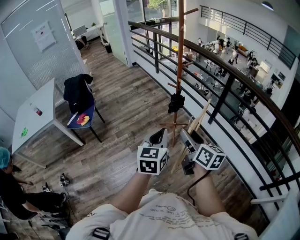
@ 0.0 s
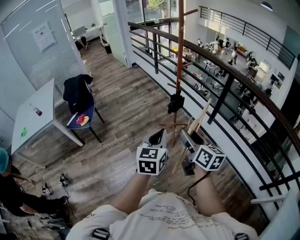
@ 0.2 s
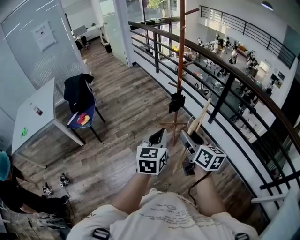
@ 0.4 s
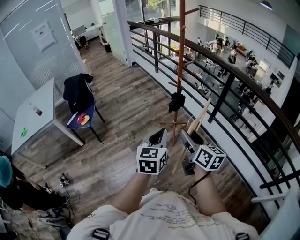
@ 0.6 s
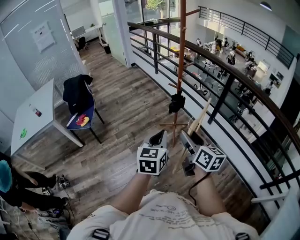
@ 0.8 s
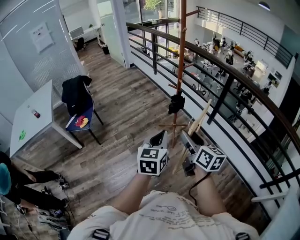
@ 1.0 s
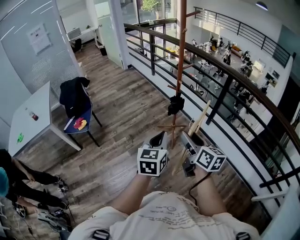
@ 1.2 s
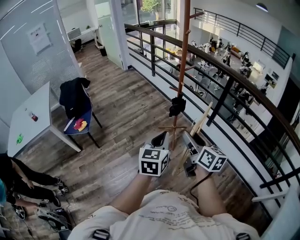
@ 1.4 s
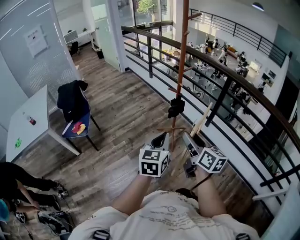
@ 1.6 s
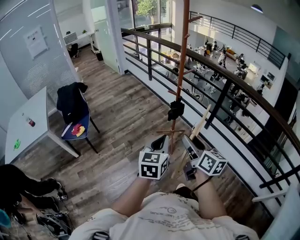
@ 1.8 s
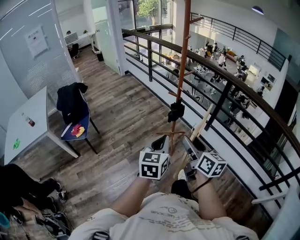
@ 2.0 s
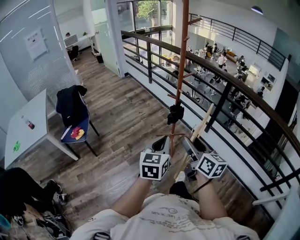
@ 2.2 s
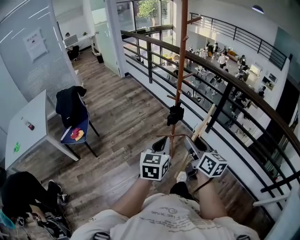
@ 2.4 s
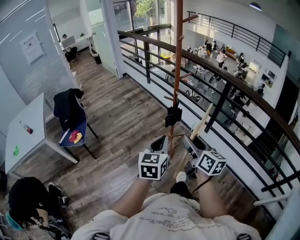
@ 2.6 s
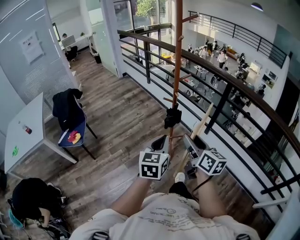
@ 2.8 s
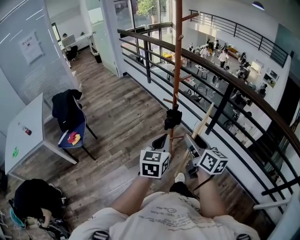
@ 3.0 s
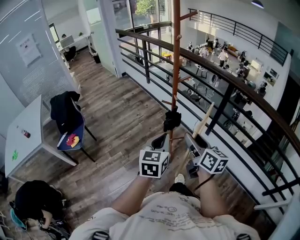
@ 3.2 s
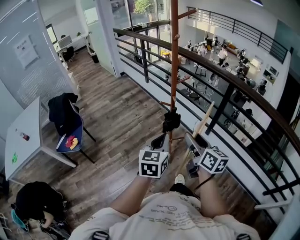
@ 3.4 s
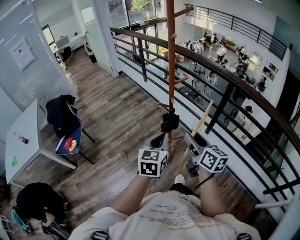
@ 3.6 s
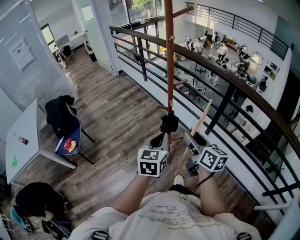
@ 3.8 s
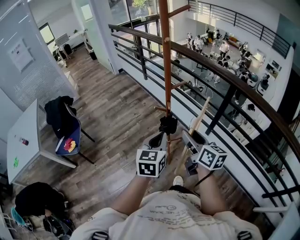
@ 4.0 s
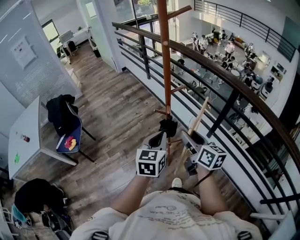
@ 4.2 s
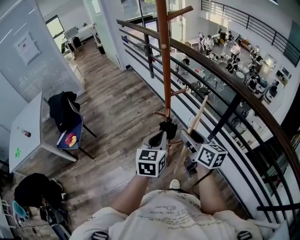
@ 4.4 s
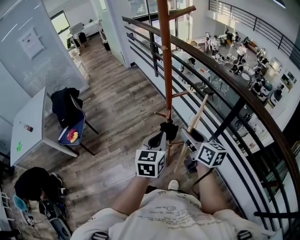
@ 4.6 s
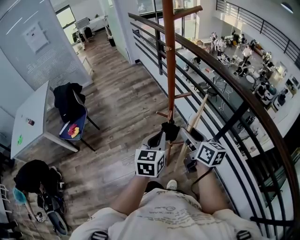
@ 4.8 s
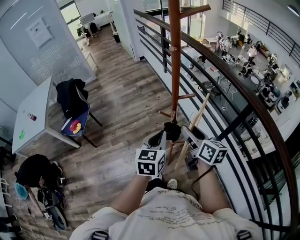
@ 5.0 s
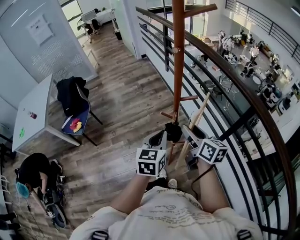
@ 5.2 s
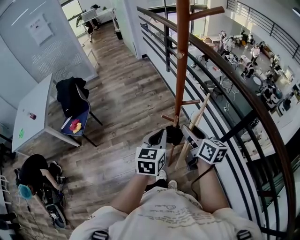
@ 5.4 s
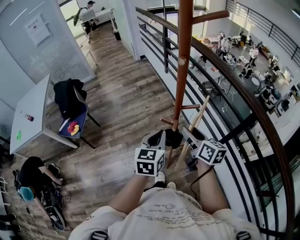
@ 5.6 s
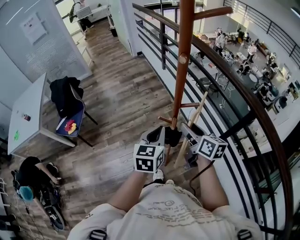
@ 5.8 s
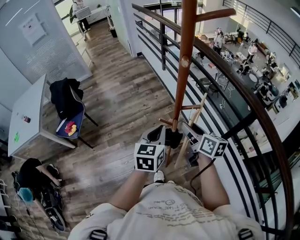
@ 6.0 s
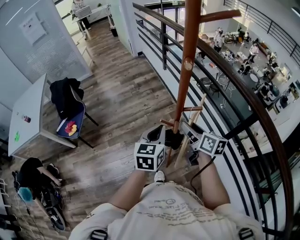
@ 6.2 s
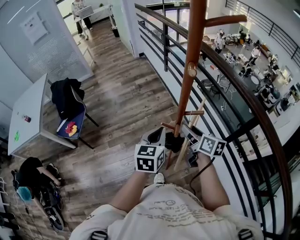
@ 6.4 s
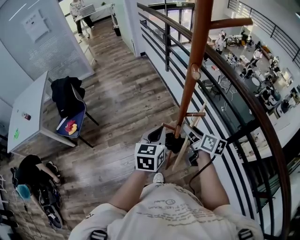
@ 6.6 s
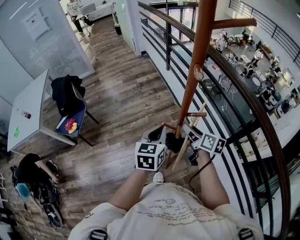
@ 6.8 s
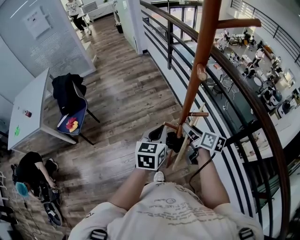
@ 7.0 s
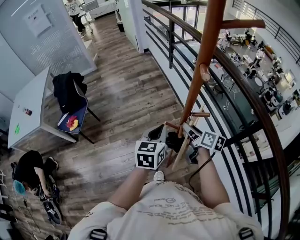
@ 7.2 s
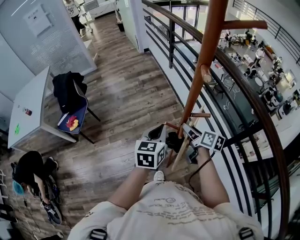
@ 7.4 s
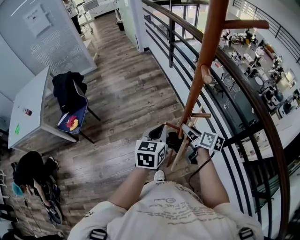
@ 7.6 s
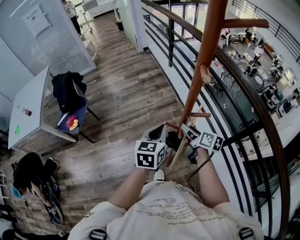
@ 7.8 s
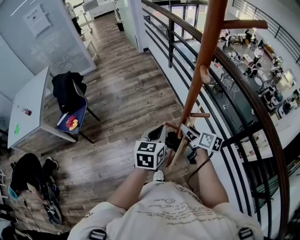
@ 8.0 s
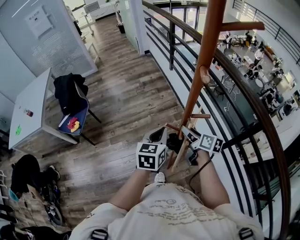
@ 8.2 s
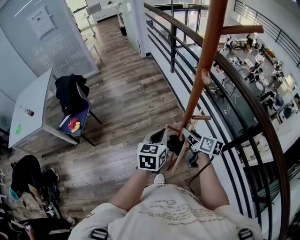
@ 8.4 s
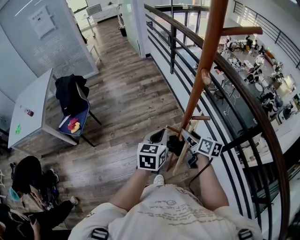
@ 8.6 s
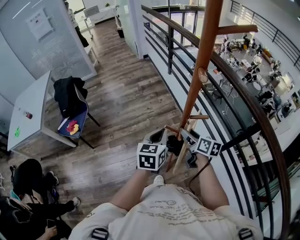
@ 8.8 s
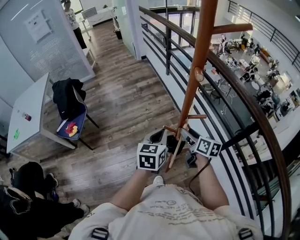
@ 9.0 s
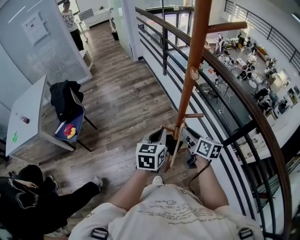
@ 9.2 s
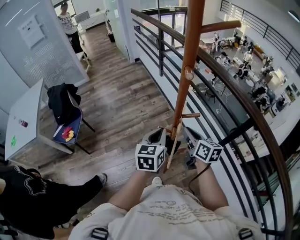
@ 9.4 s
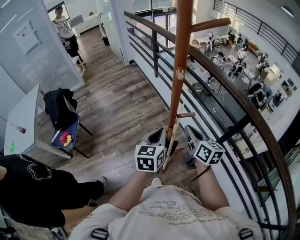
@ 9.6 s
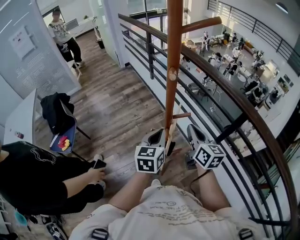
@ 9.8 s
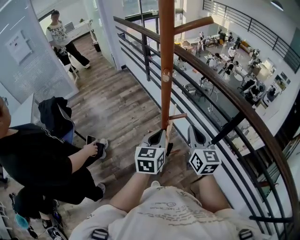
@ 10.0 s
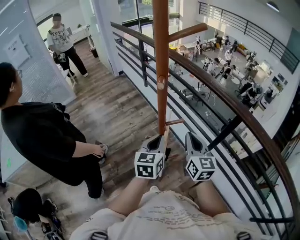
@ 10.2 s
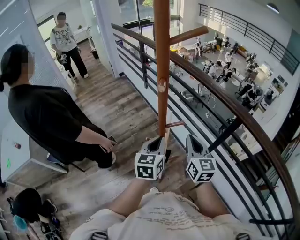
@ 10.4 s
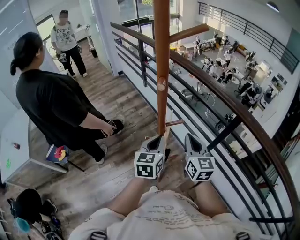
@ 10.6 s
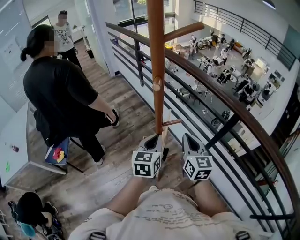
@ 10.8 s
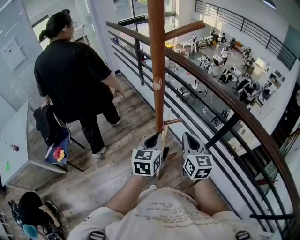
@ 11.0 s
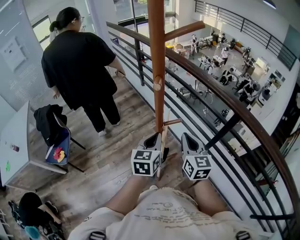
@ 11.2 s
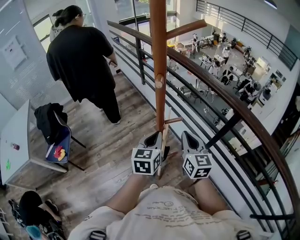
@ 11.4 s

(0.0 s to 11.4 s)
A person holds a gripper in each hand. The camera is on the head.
0.0 s - 1.4 s: The left gripper changes place by approximately 5 cm.
1.4 s - 2.8 s: Both grippers move forward, about 10 cm.
2.8 s - 4.2 s: The grippers both shift forward and to the right by about 20 cm.
4.2 s - 5.6 s: The grippers both shift forward by about 15 cm.
5.6 s - 7.2 s: The left gripper travels forward by roughly 5 cm; the right gripper shifts about 10 cm downward and forward.
7.2 s - 8.6 s: There are only small adjustments of the grippers.
8.6 s - 10.0 s: The left gripper travels to the right by approximately 10 cm, while the right gripper shifts roughly 15 cm upward and to the right, rotates some 40 degrees, and closes.
10.0 s - 11.4 s: The grippers move only a little.

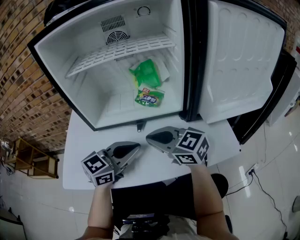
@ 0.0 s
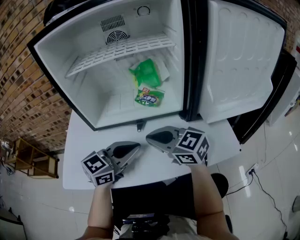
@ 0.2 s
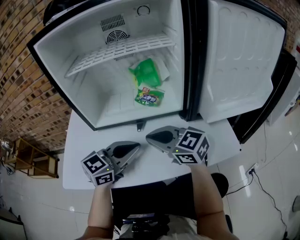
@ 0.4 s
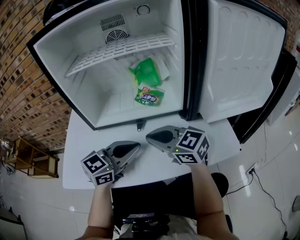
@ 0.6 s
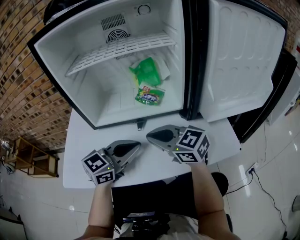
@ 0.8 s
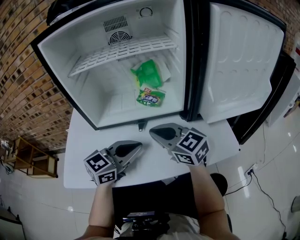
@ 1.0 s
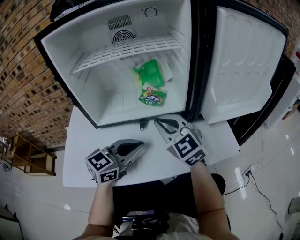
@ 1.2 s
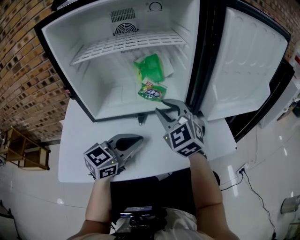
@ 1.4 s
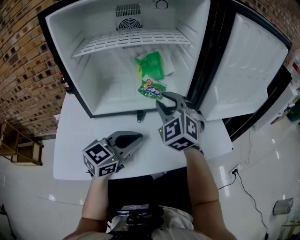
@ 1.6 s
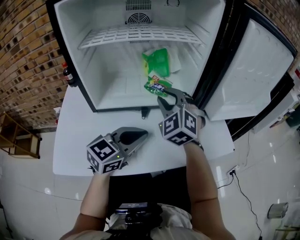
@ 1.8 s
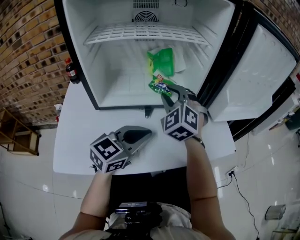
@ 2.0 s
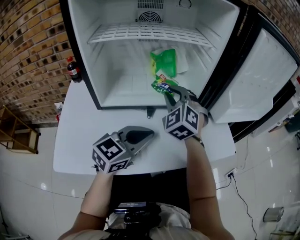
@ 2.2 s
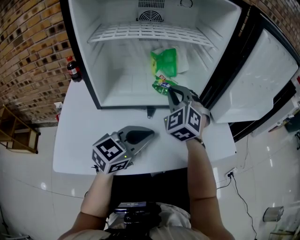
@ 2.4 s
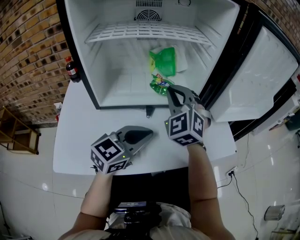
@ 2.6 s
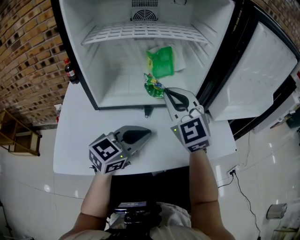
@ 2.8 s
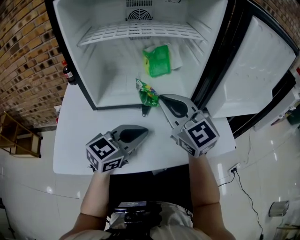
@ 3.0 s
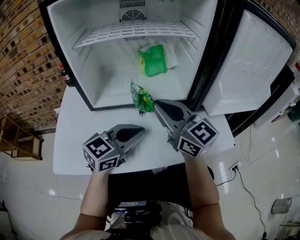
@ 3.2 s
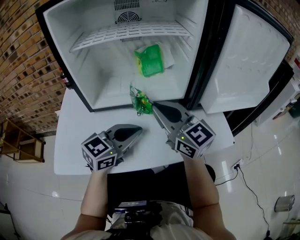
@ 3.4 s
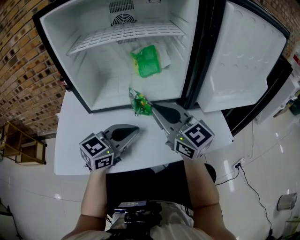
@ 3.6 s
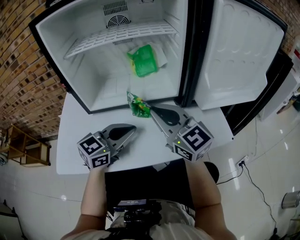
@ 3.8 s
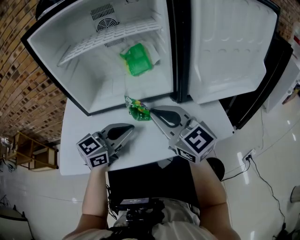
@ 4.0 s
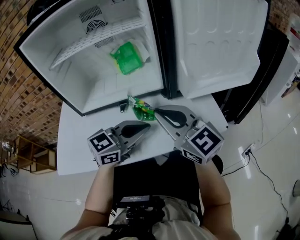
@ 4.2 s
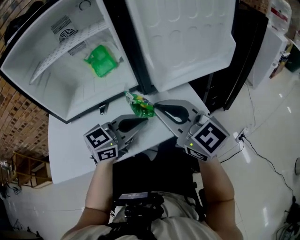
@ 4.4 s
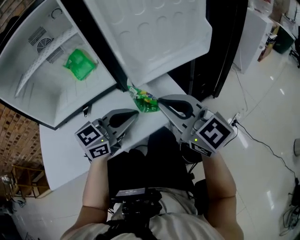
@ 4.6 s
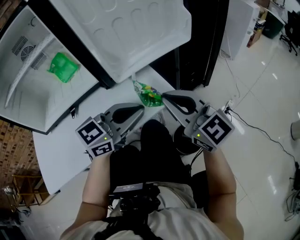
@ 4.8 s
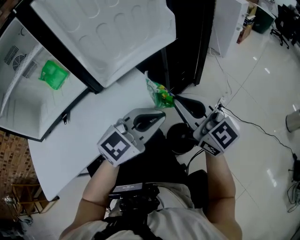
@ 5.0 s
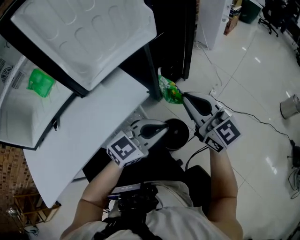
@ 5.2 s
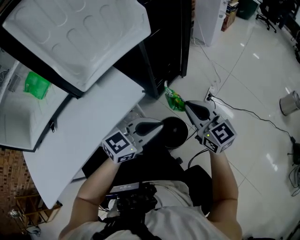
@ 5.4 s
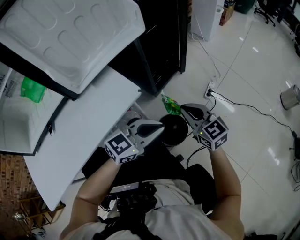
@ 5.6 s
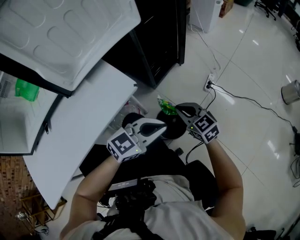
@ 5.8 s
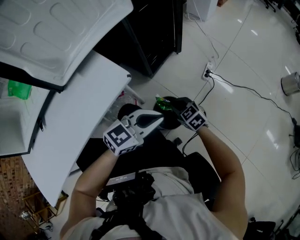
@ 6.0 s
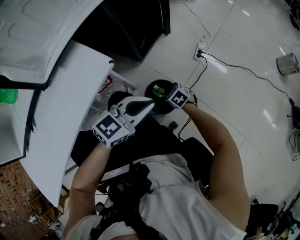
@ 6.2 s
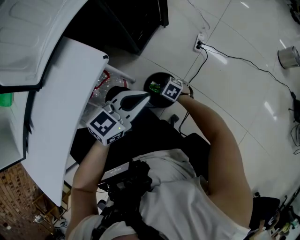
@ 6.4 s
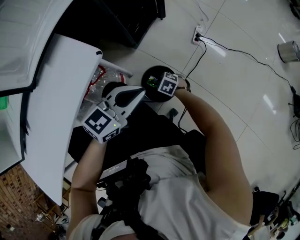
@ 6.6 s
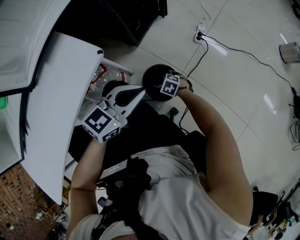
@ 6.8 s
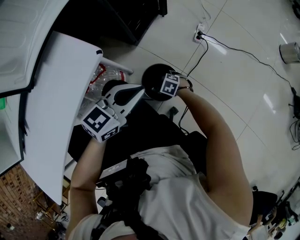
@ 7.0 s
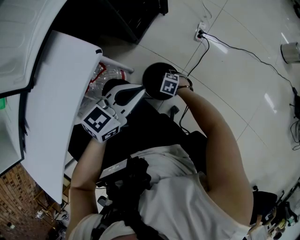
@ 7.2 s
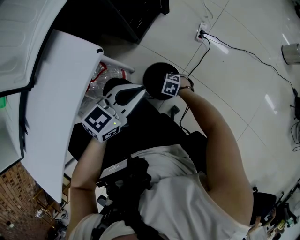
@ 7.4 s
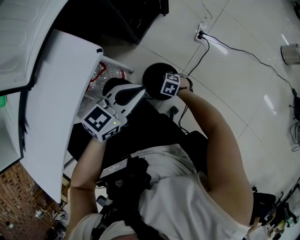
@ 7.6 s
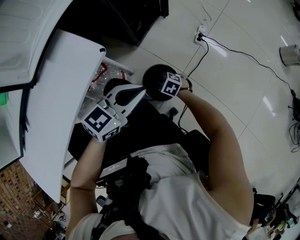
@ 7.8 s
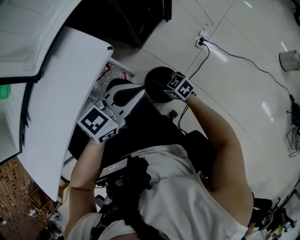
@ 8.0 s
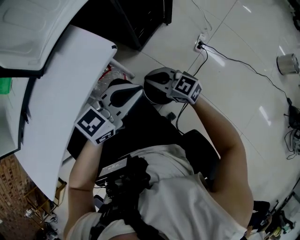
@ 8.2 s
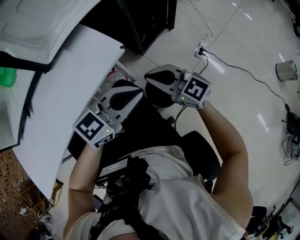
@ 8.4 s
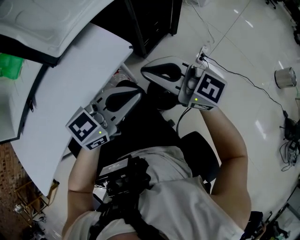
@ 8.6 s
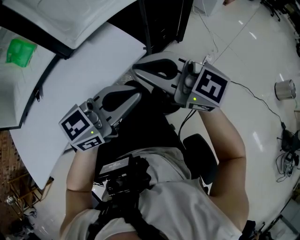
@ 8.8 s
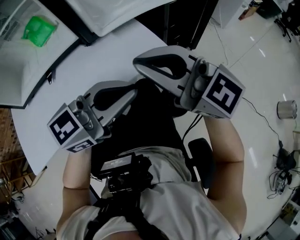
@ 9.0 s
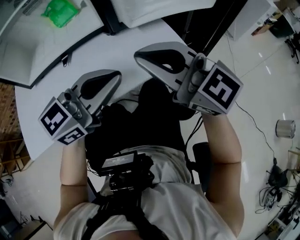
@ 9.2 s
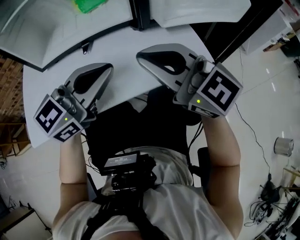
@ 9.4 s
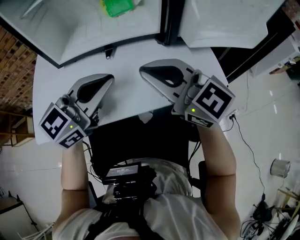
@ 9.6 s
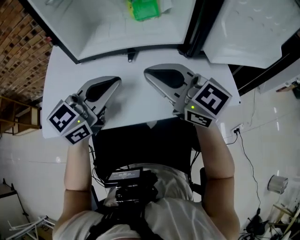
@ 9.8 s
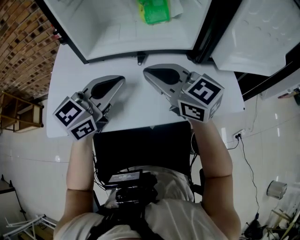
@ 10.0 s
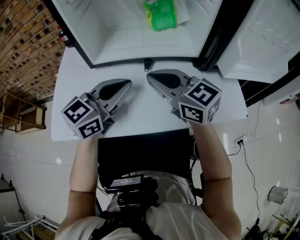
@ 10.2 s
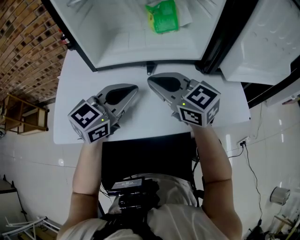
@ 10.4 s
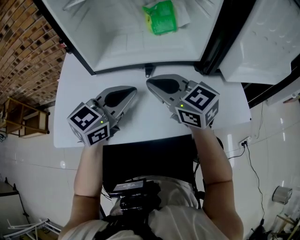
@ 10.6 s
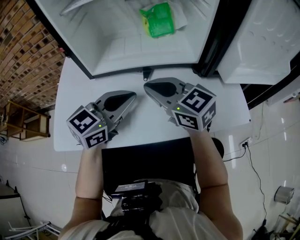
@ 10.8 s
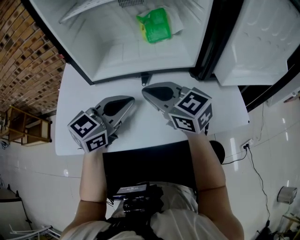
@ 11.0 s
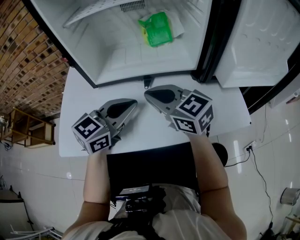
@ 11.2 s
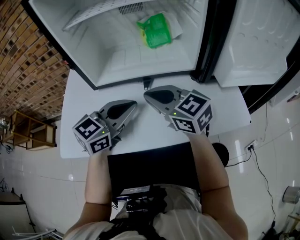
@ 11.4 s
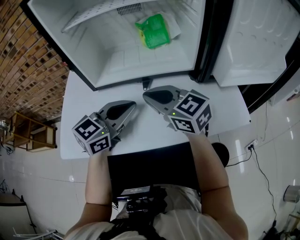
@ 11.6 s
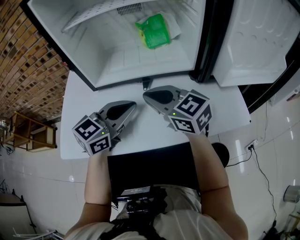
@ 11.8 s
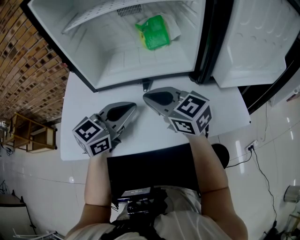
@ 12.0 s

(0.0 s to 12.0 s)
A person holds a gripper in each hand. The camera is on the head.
0.0 s - 1.6 s: The right gripper heads forward, covering roughly 10 cm, changes its angle by roughly 60 degrees, and opens up.
1.6 s - 3.0 s: The right gripper moves backward, approximately 5 cm, swivels approximately 40 degrees, and closes up.
3.0 s - 4.4 s: The left gripper shifts roughly 15 cm to the right. Meanwhile the right gripper heads to the right and backward, covering some 20 cm.
4.4 s - 6.0 s: The right gripper moves downward, some 40 cm, and tilts its fingers some 50 degrees downward, while the left gripper changes place by roughly 35 cm, and rotates roughly 30 degrees.
6.0 s - 7.6 s: The right gripper goes approximately 20 cm downward, rotates some 30 degrees, and opens and closes again.
7.6 s - 9.0 s: The left gripper heads upward, covering approximately 25 cm, and turns by about 20 degrees, while the right gripper goes roughly 60 cm upward, and tips its fingers upward by some 70 degrees.
9.0 s - 10.4 s: The right gripper moves roughly 35 cm, and swivels approximately 20 degrees, while the left gripper shifts by approximately 35 cm, and rotates about 40 degrees.
10.4 s - 12.0 s: Neither gripper changes place.
